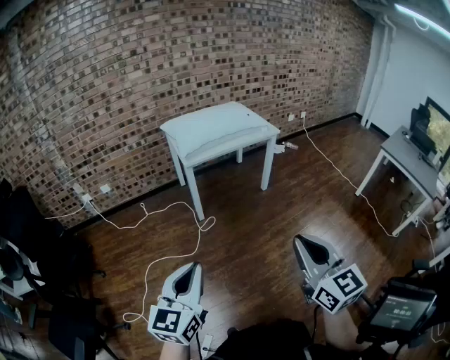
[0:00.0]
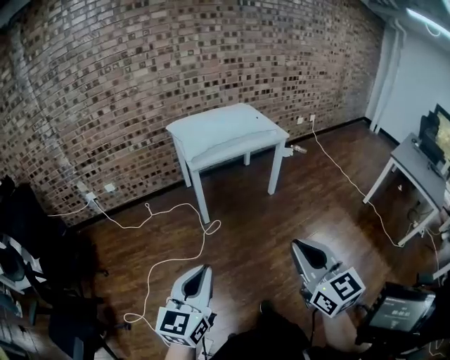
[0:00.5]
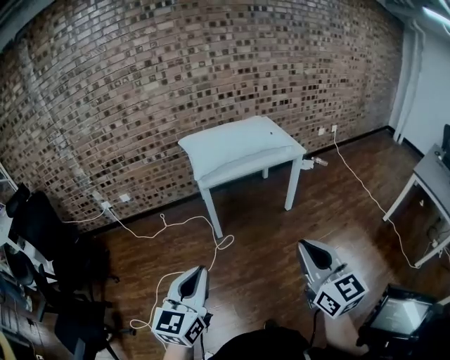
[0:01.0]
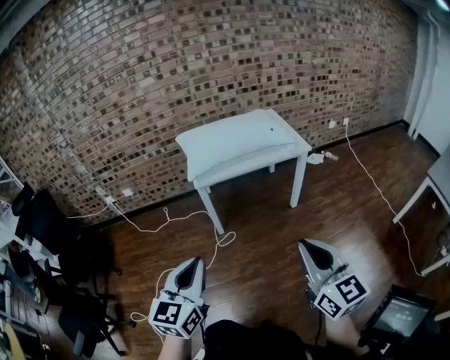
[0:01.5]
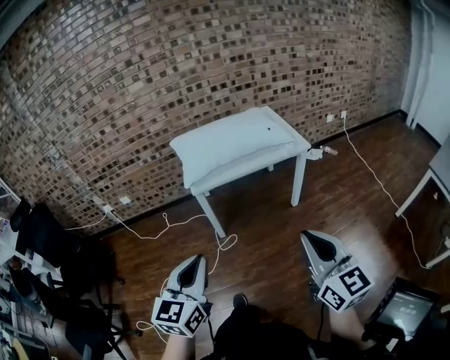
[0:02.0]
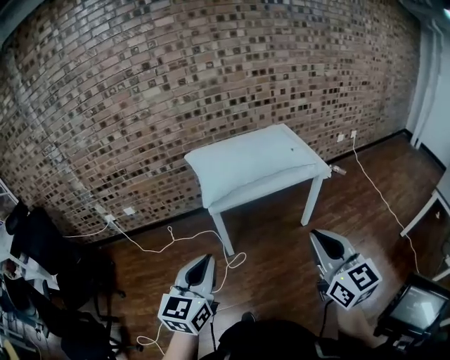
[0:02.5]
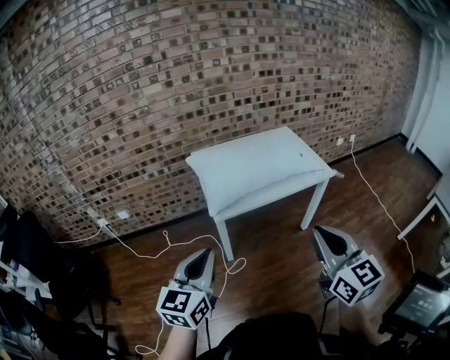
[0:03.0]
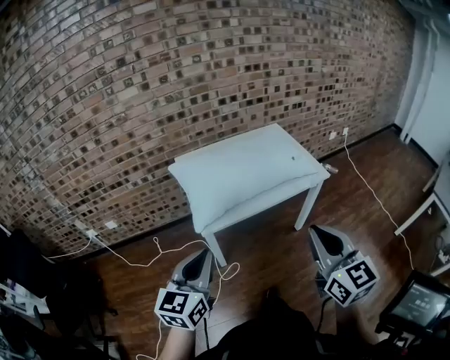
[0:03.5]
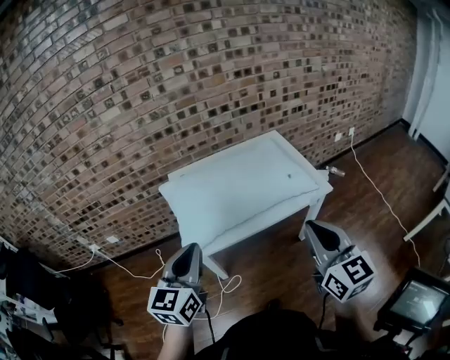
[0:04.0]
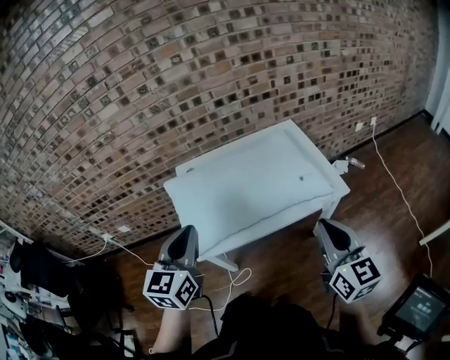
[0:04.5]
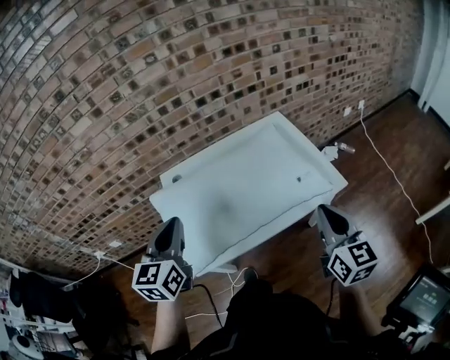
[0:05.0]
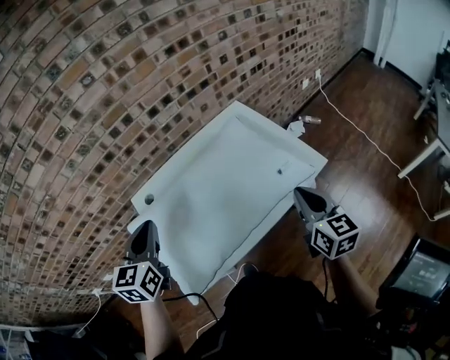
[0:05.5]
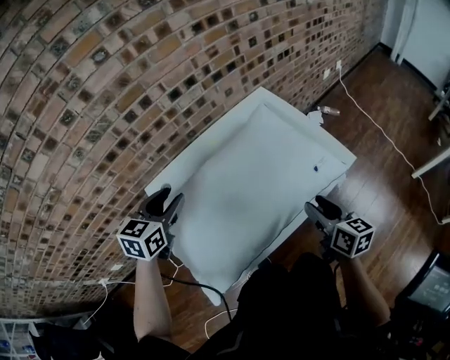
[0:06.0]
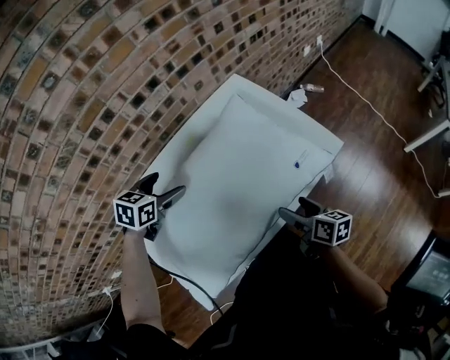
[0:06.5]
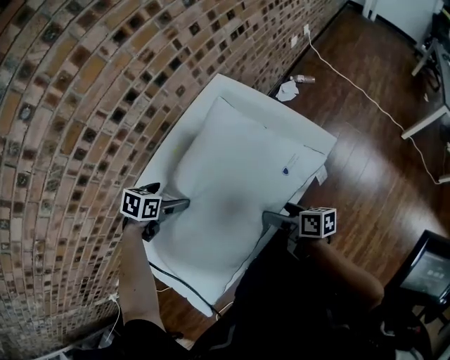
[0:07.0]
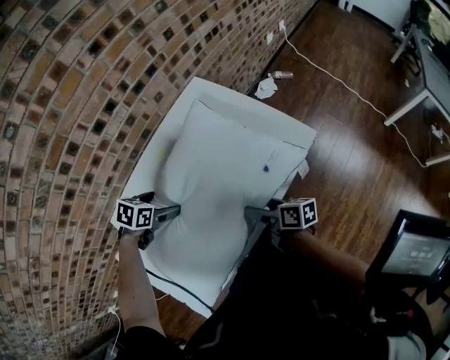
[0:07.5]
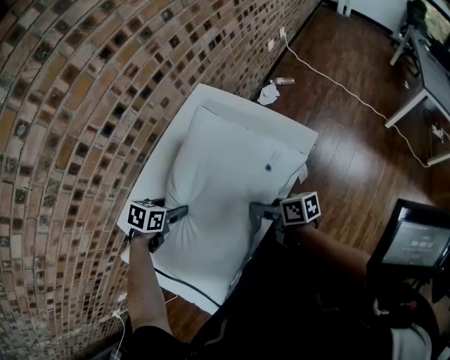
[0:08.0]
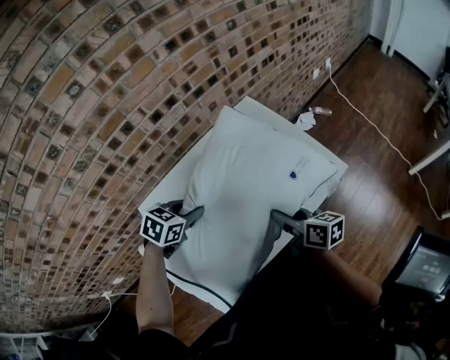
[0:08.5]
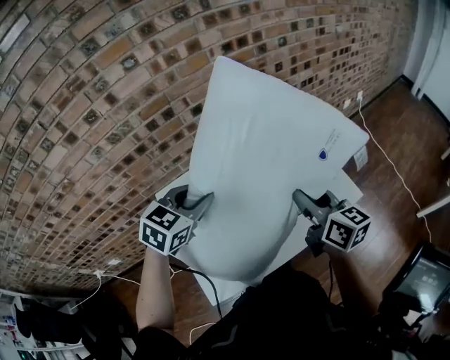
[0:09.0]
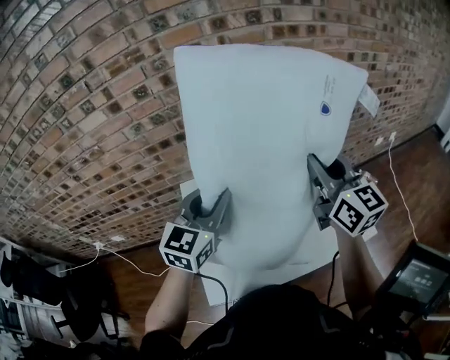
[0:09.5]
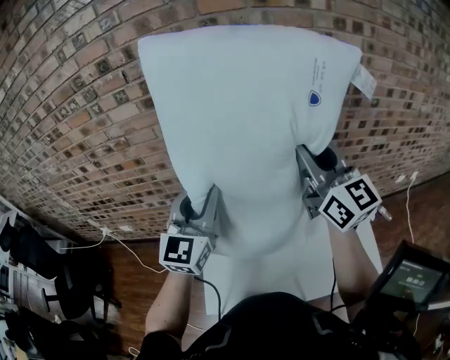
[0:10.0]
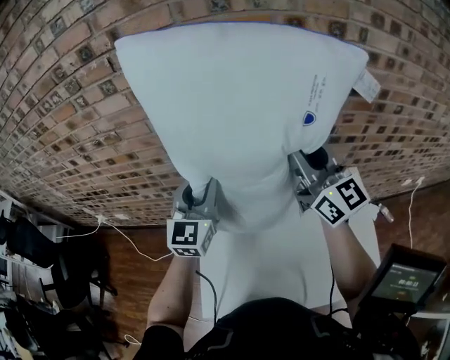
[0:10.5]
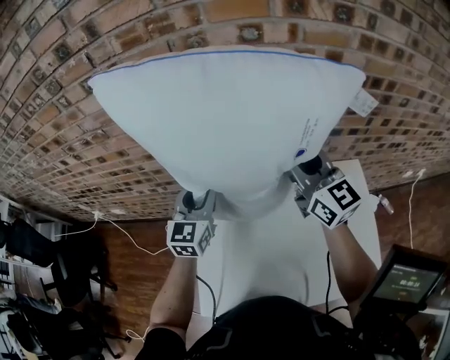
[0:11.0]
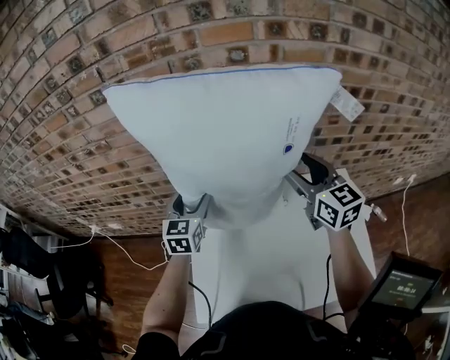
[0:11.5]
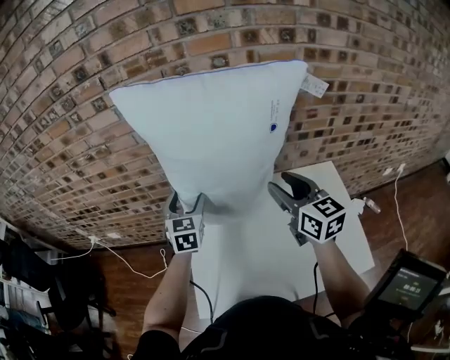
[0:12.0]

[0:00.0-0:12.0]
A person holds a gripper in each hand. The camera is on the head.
0:00.0 to 0:02.0: Both grippers move forward and to the right, some 30 cm.
0:02.0 to 0:04.0: Both grippers travel together forward, about 40 cm.
0:04.0 to 0:06.0: The left gripper shifts roughly 40 cm forward, and swivels roughly 30 degrees. The right gripper moves forward and downward, some 35 cm, changes its angle by some 40 degrees, and opens.
0:06.0 to 0:08.0: The left gripper shifts approximately 20 cm downward and to the right, tips its fingers downward by roughly 30 degrees, and opens and closes again. Meanwhile the right gripper goes approximately 10 cm downward, turns by about 30 degrees, and opens, then closes once more.
0:08.0 to 0:10.0: Both grippers travel together upward, some 40 cm. The right gripper rolls counterclockwise, seen from behind, by about 60 degrees; the left gripper tips its fingers upward by about 70 degrees.
0:10.0 to 0:12.0: The right gripper travels downward by roughly 15 cm, and swivels approximately 20 degrees. The left gripper heads downward and forward, covering roughly 20 cm, rotates some 30 degrees, and opens its fingers.

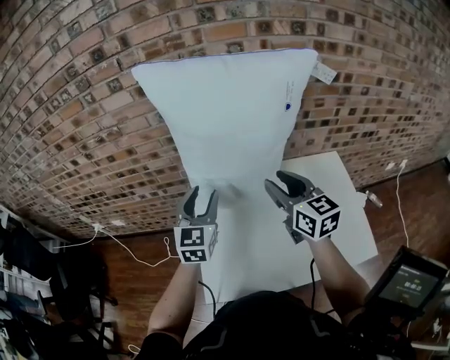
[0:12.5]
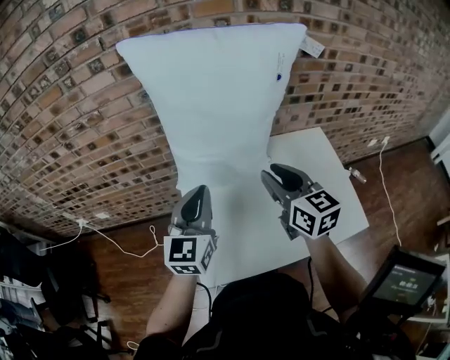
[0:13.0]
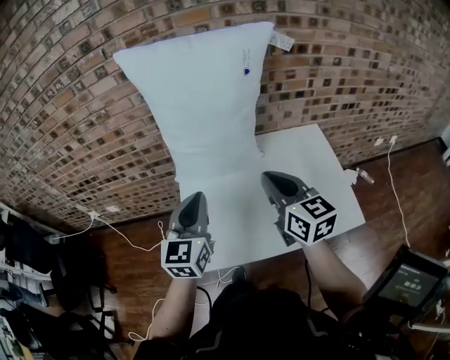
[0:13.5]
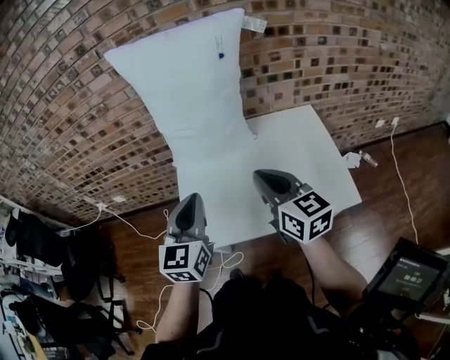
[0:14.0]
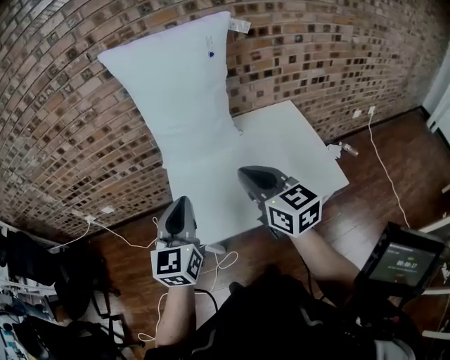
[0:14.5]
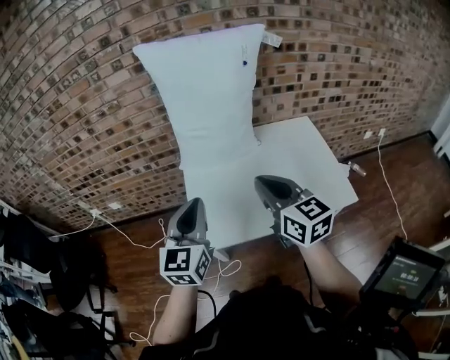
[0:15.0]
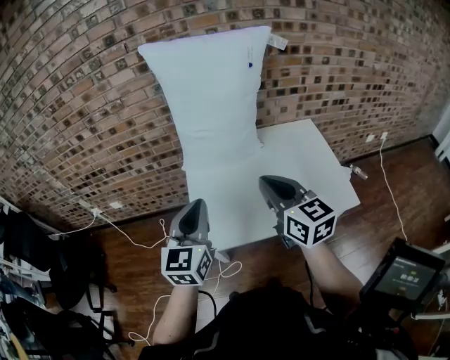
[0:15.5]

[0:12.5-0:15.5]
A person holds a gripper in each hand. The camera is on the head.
0:12.5 to 0:14.0: The grippers both shift backward by approximately 20 cm.
0:14.0 to 0:15.5: The two grippers go some 10 cm to the left.

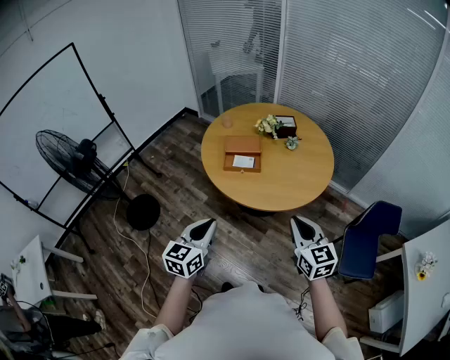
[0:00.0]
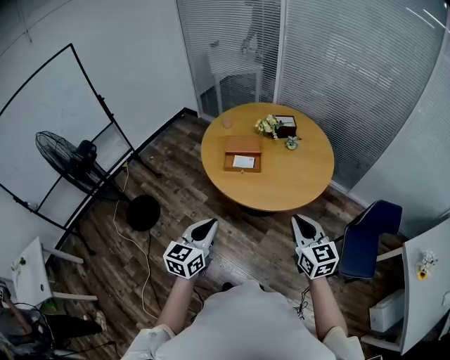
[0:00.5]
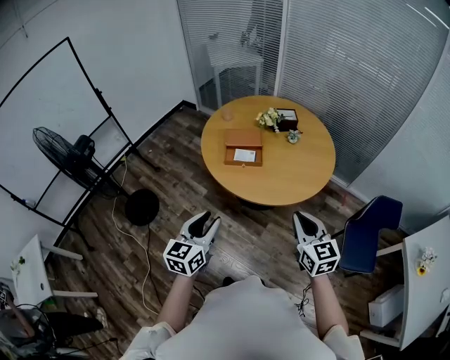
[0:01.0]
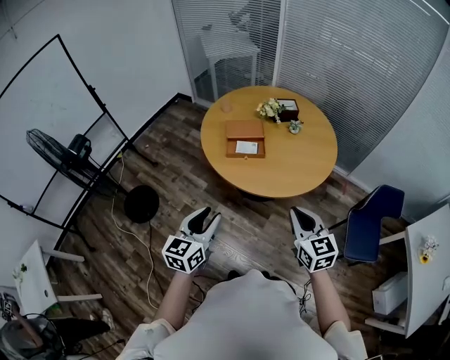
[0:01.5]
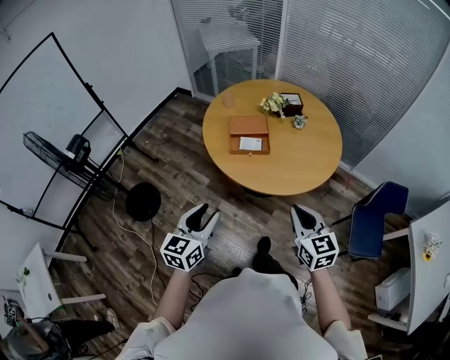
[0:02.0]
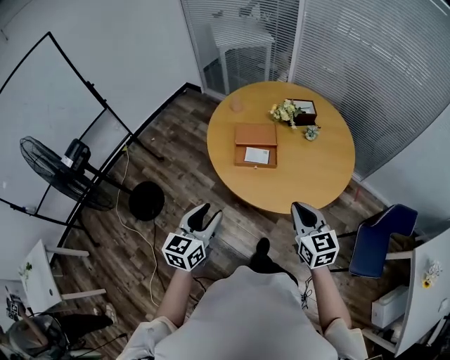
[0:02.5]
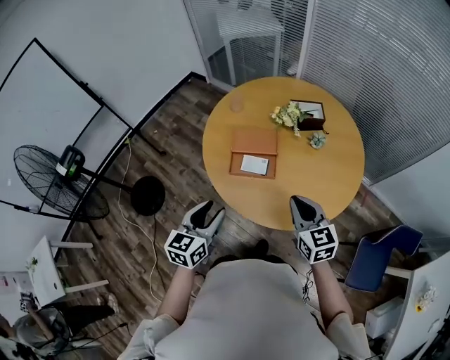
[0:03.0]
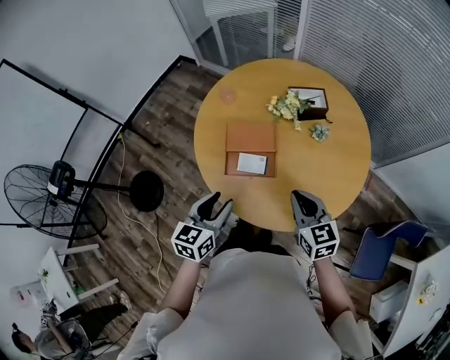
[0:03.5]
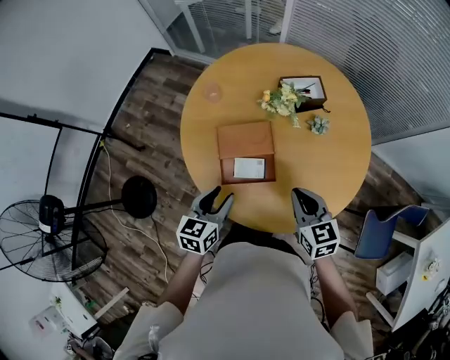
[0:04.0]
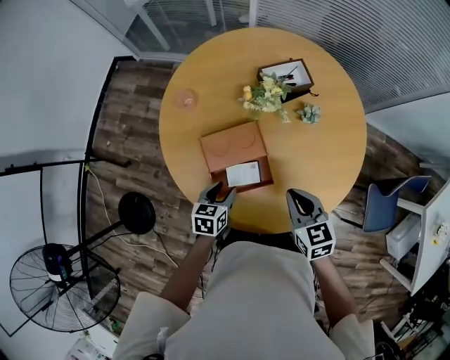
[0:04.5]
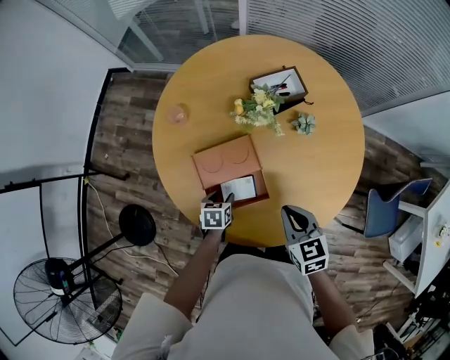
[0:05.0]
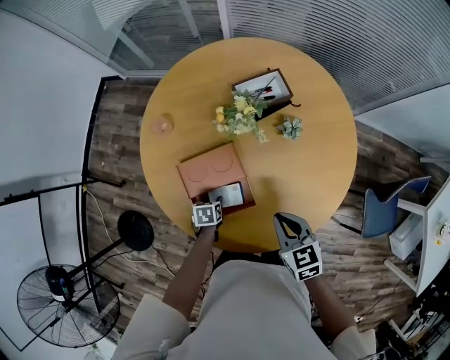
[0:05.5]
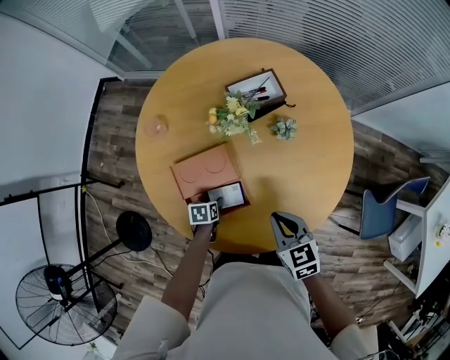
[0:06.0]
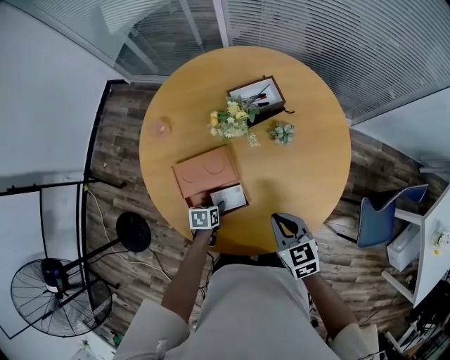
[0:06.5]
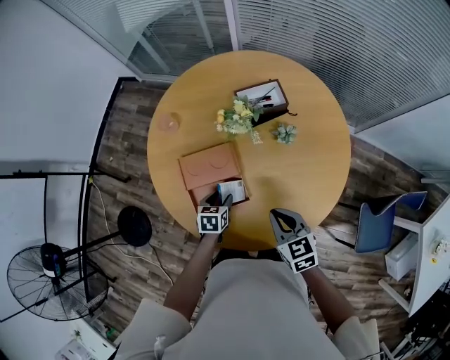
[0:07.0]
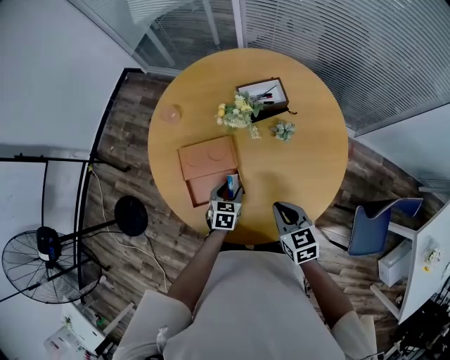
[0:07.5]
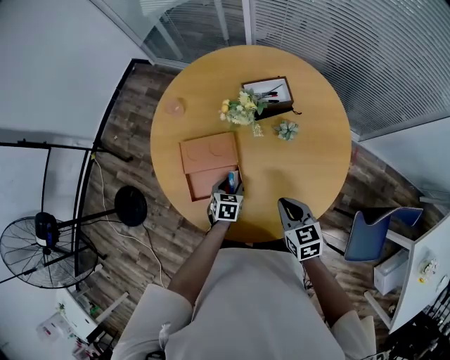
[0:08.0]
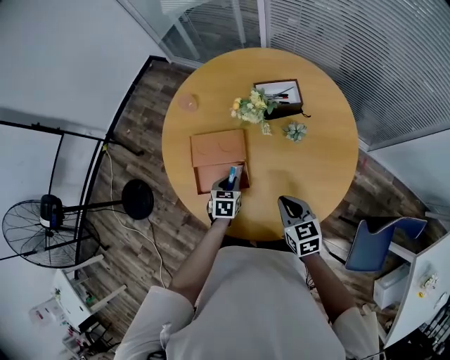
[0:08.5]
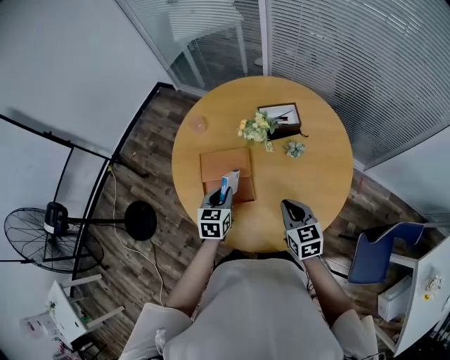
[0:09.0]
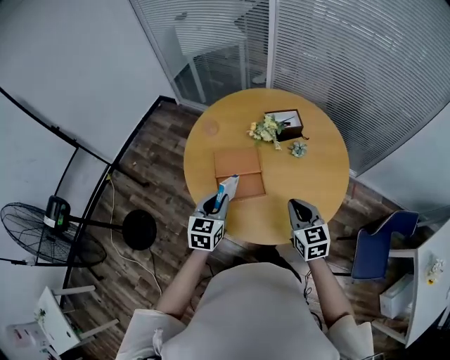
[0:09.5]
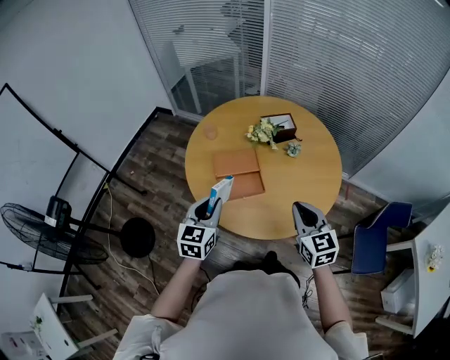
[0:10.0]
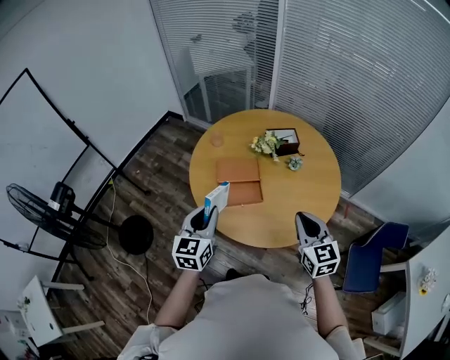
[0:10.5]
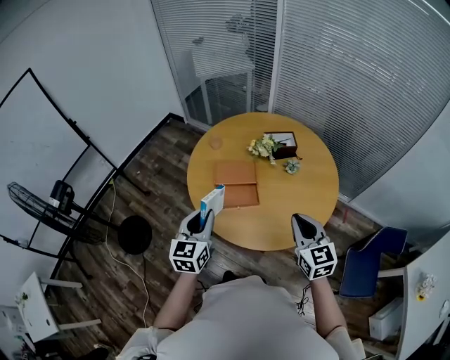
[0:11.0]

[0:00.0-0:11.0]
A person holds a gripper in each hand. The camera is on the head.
0:00.0 to 0:02.0: The two grippers go about 10 cm to the left. The left gripper opens.
0:02.0 to 0:03.5: The two grippers go roughly 35 cm forward.
0:03.5 to 0:05.5: The left gripper shifts some 40 cm downward and forward, and tips its fingers downward by about 40 degrees, while the right gripper travels downward and forward by roughly 15 cm, and swivels roughly 20 degrees.
0:05.5 to 0:07.5: The left gripper heads to the right and upward, covering about 15 cm, and swivels roughly 30 degrees; the right gripper moves to the right, some 5 cm.
0:07.5 to 0:09.0: The left gripper heads upward, covering approximately 15 cm, and closes up.
0:09.0 to 0:11.0: The right gripper moves backward and upward, some 25 cm. Meanwhile the left gripper goes roughly 30 cm backward, upward and to the left, and changes its angle by roughly 20 degrees.
